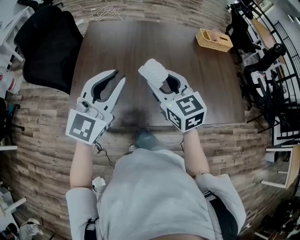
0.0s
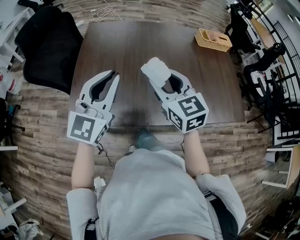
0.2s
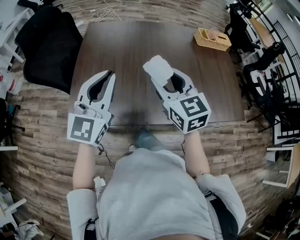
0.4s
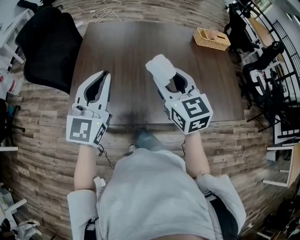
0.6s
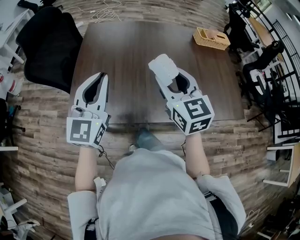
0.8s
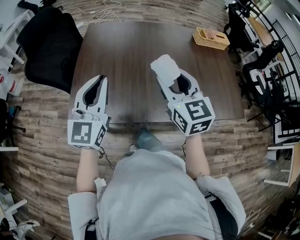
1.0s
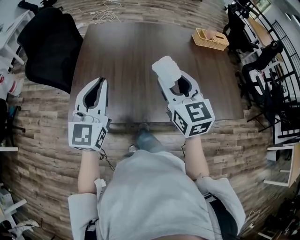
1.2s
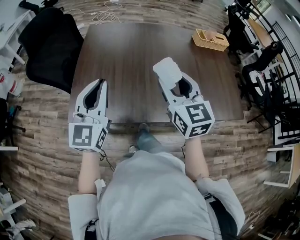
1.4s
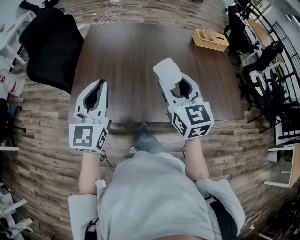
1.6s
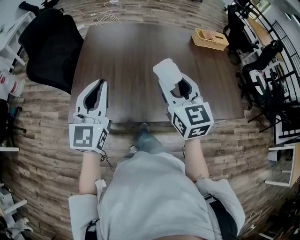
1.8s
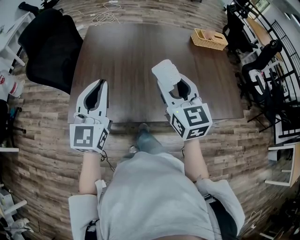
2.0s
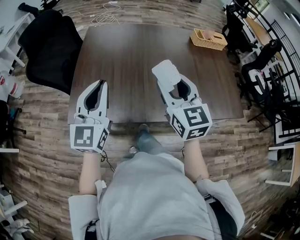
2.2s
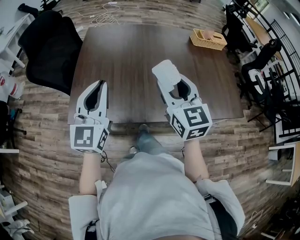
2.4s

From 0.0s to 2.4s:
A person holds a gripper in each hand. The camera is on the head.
From 0.0s to 1.2s: The left gripper moves approximately 5 cm. The right gripper changes place by some 5 cm.
From 1.2s to 2.4s: The grippers stay close to where they were, moving slightly.

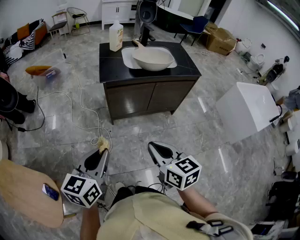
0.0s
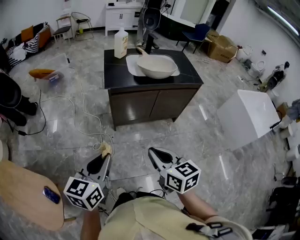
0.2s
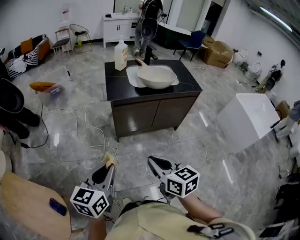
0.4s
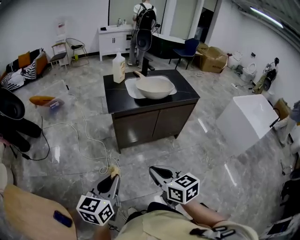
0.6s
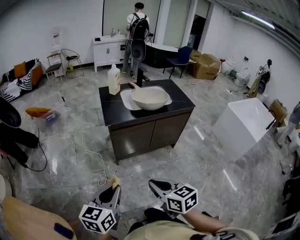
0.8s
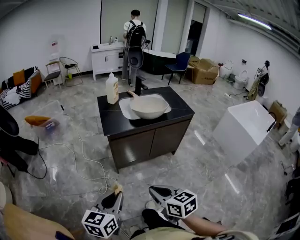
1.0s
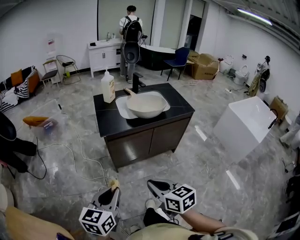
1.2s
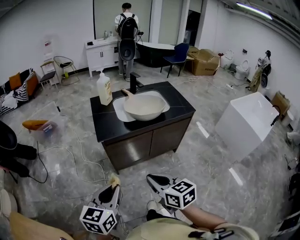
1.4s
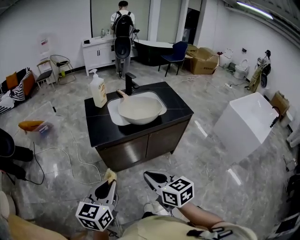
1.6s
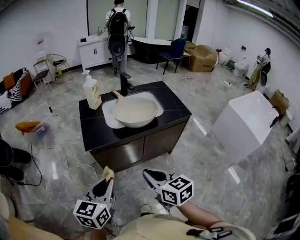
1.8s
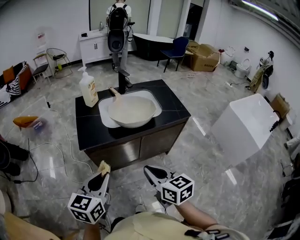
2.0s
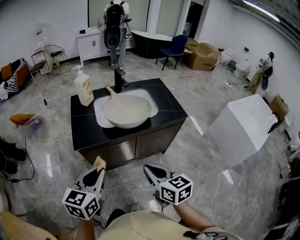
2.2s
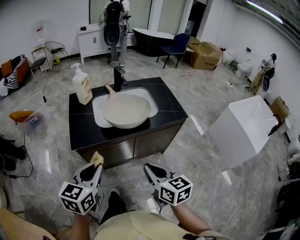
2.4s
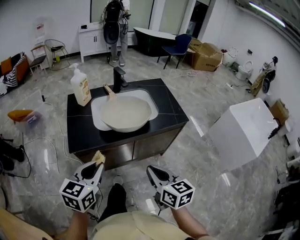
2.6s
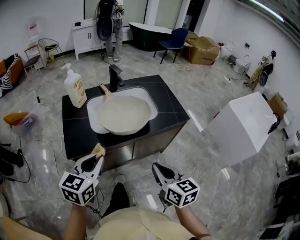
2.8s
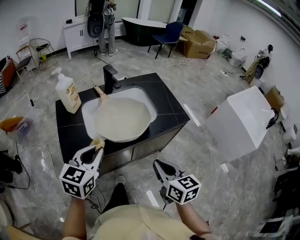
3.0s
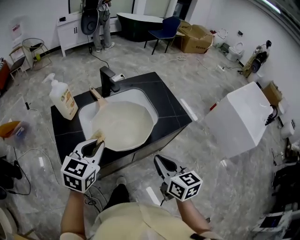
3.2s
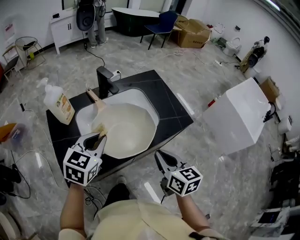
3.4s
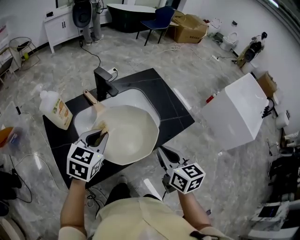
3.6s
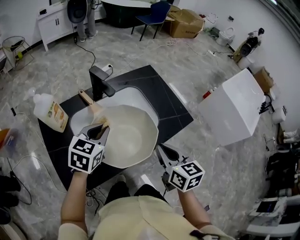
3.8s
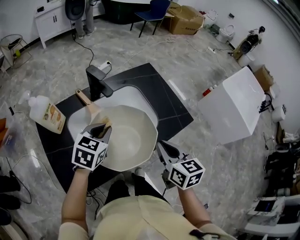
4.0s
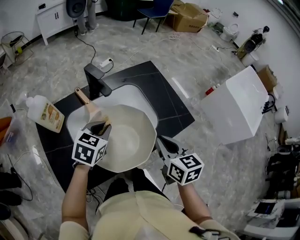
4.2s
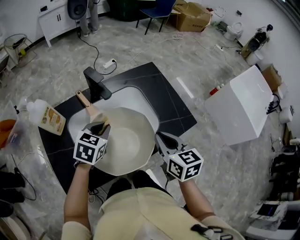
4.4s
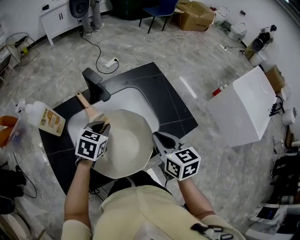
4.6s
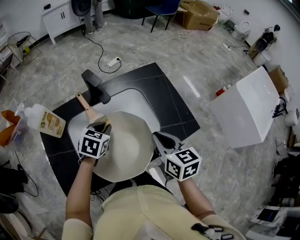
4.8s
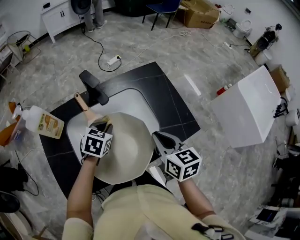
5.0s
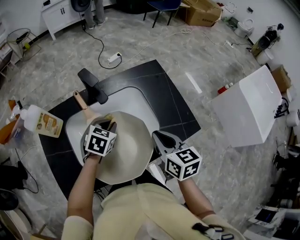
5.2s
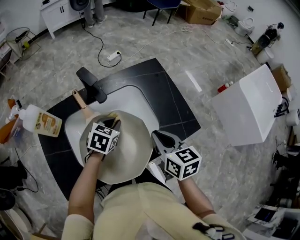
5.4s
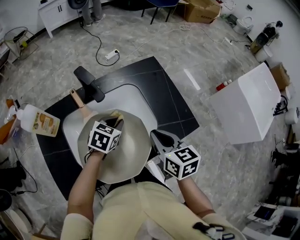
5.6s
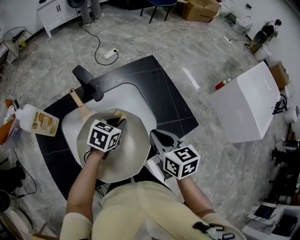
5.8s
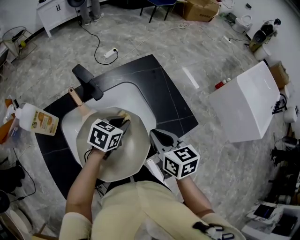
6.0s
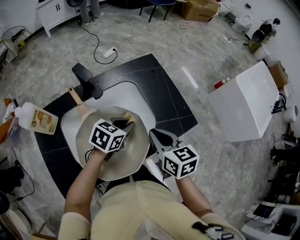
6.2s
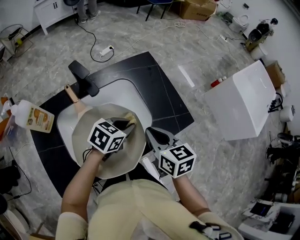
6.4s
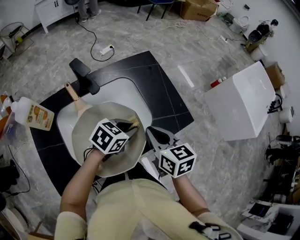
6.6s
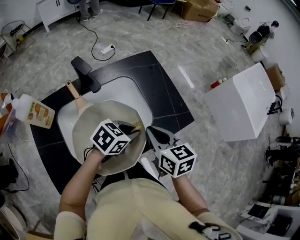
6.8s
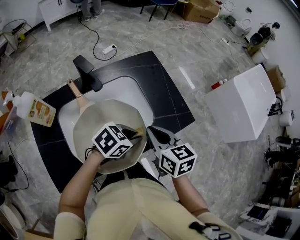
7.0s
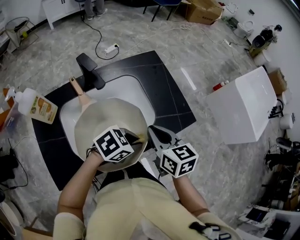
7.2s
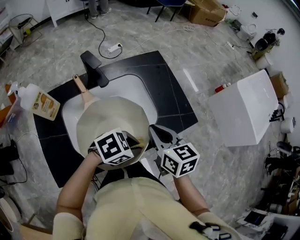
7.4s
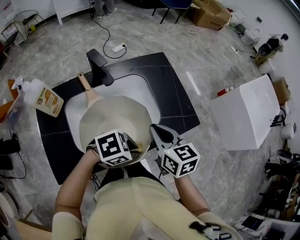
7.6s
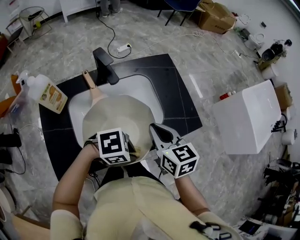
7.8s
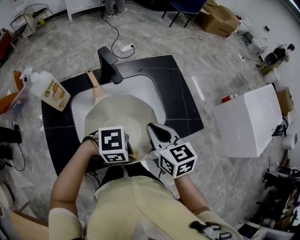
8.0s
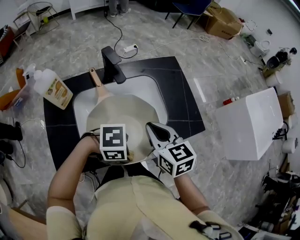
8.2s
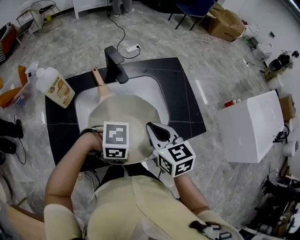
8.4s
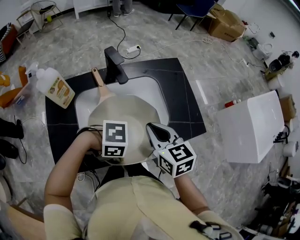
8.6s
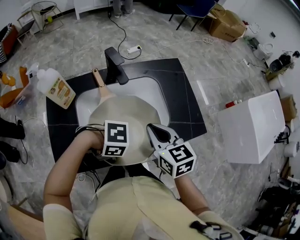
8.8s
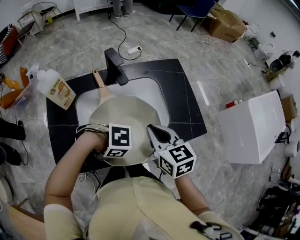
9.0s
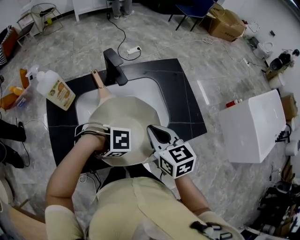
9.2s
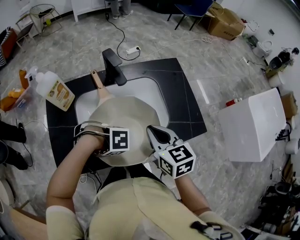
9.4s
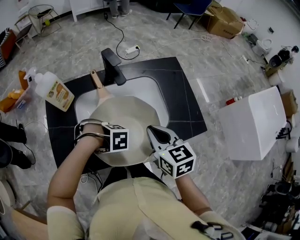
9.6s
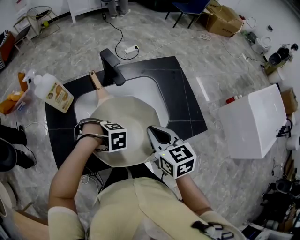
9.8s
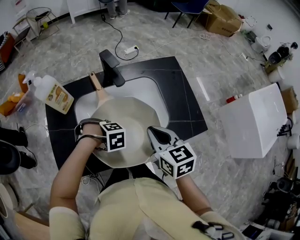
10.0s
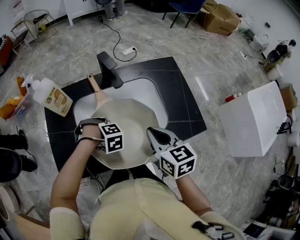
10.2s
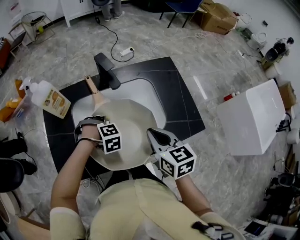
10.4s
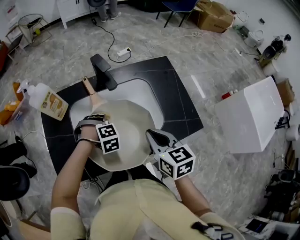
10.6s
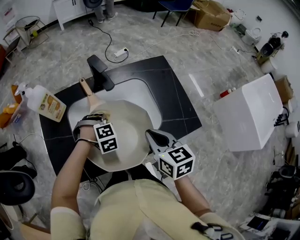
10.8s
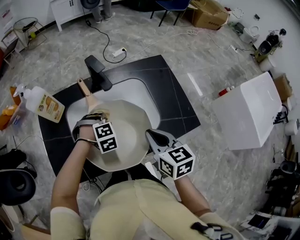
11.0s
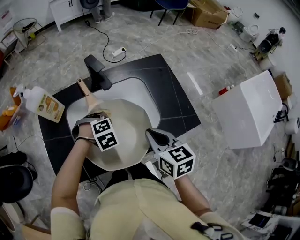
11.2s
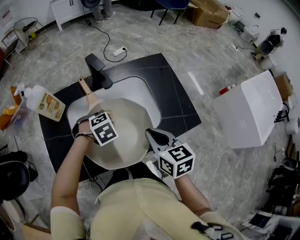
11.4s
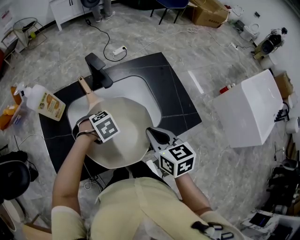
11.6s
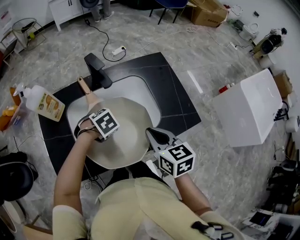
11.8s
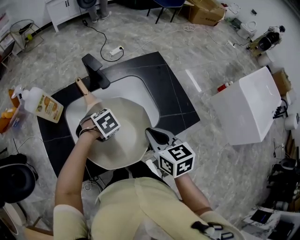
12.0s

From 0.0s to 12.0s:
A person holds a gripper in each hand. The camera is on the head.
From 0.0s to 1.6s: The grippers both shift forward by about 15 cm.
From 1.6s to 3.0s: The right gripper heads forward and to the right, covering about 30 cm, while the left gripper goes approximately 30 cm forward.
From 3.0s to 4.4s: Both grippers travel together forward, roughly 25 cm. The left gripper swivels some 20 degrees.
From 4.4s to 6.0s: The left gripper travels to the right and downward by roughly 10 cm; the right gripper changes place by some 5 cm.
From 6.0s to 7.6s: The left gripper changes place by some 20 cm, and changes its angle by roughly 40 degrees.
From 7.6s to 9.0s: The left gripper changes place by some 15 cm, and swivels some 40 degrees.
From 9.0s to 10.4s: The left gripper shifts by approximately 15 cm, and turns by about 50 degrees.
From 10.4s to 12.0s: The left gripper changes place by approximately 5 cm, and changes its angle by approximately 30 degrees.

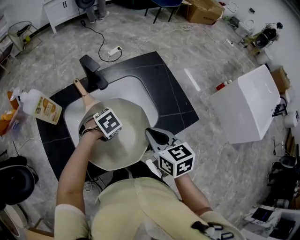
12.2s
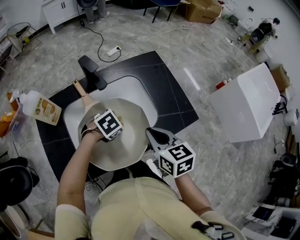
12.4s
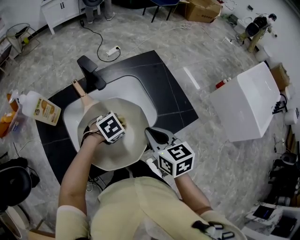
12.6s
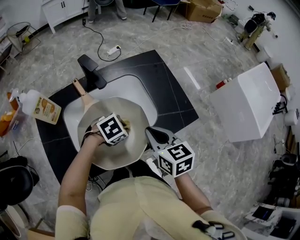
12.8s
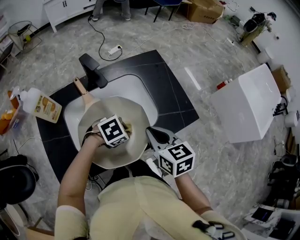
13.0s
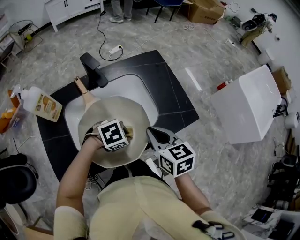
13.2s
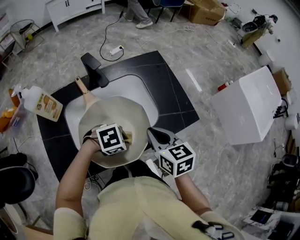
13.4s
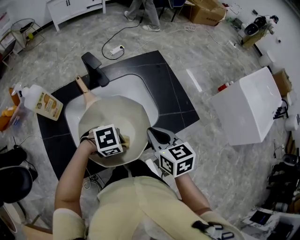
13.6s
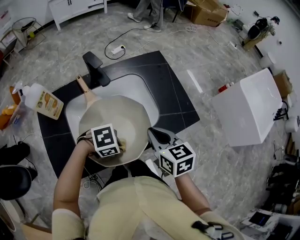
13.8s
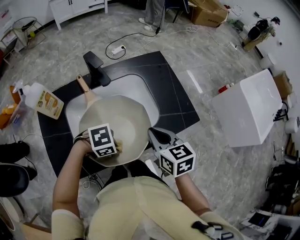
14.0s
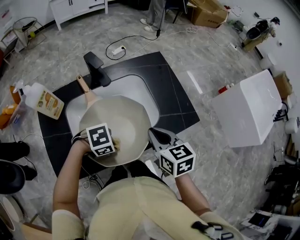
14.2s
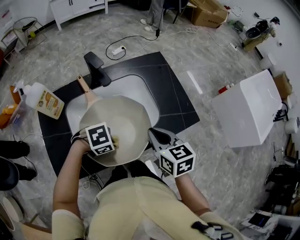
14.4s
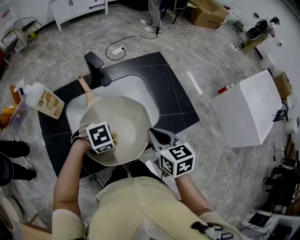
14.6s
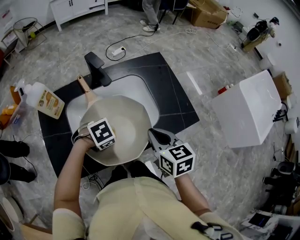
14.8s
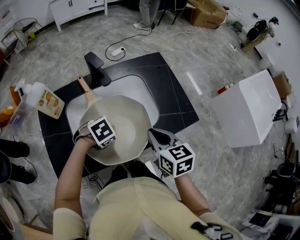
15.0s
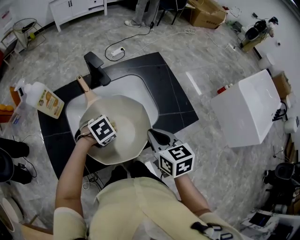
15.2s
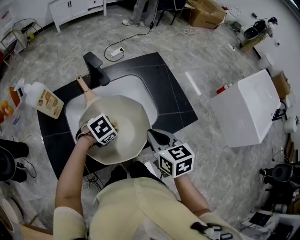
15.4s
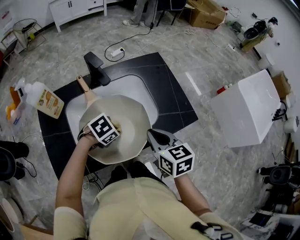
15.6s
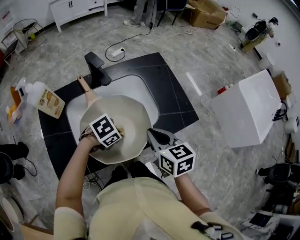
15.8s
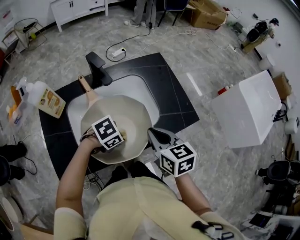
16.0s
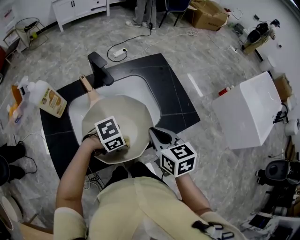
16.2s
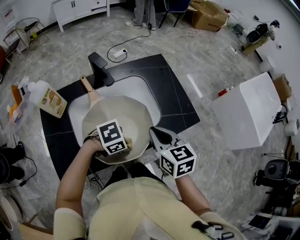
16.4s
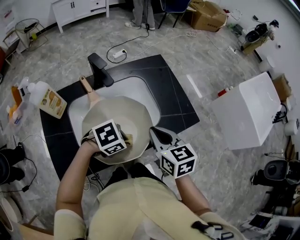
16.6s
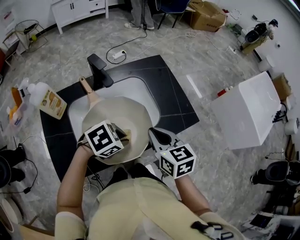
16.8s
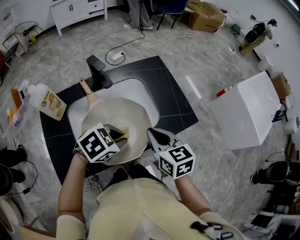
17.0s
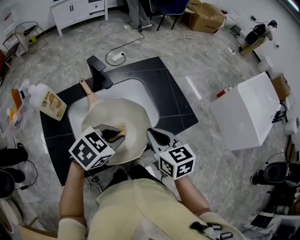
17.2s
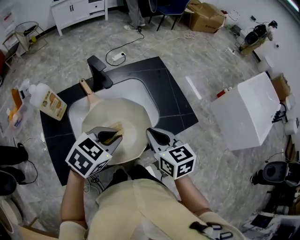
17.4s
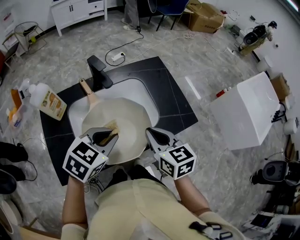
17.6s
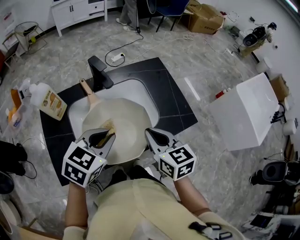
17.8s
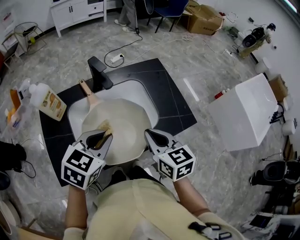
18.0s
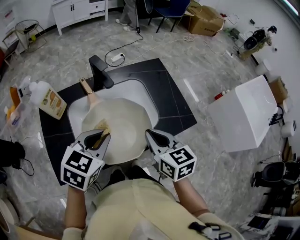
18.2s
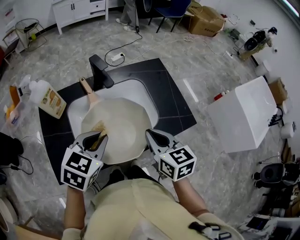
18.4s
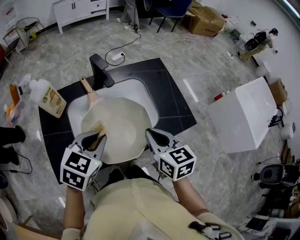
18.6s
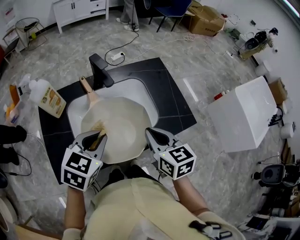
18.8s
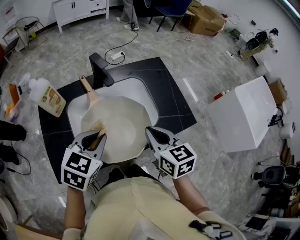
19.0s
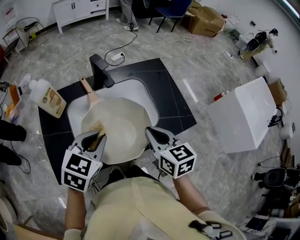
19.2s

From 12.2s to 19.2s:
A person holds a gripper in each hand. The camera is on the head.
From 12.2s to 13.6s: The left gripper shifts by approximately 15 cm, and swivels some 30 degrees.
From 13.6s to 15.0s: The left gripper changes place by about 10 cm, and turns by about 20 degrees.
From 15.0s to 16.4s: The left gripper moves roughly 10 cm, and turns by some 20 degrees.
From 16.4s to 17.8s: The left gripper moves upward, roughly 15 cm, and swivels roughly 60 degrees.
From 17.8s to 19.2s: There are only small adjustments of the grippers.

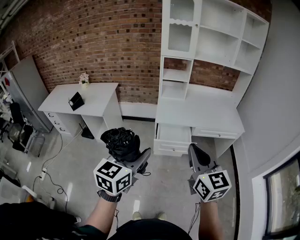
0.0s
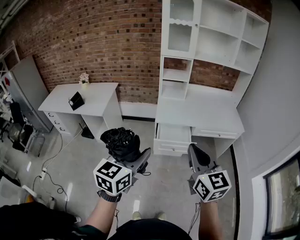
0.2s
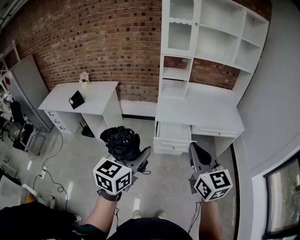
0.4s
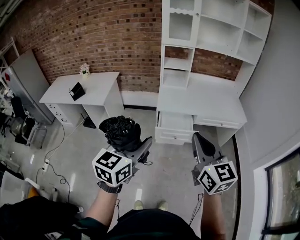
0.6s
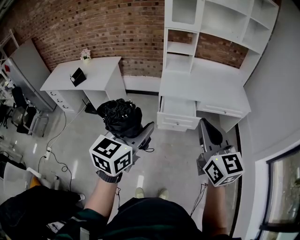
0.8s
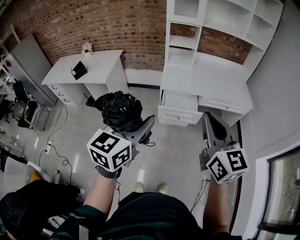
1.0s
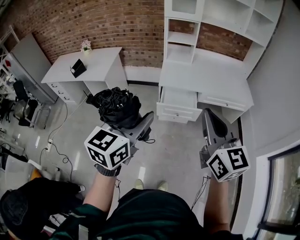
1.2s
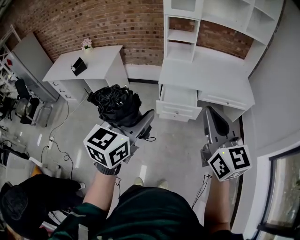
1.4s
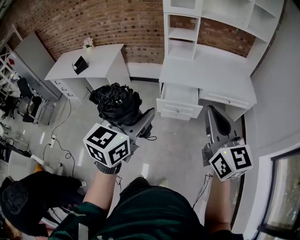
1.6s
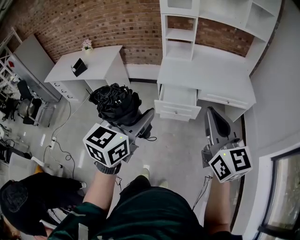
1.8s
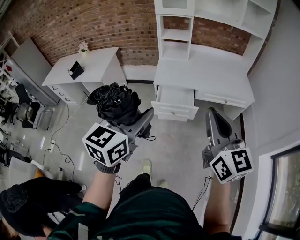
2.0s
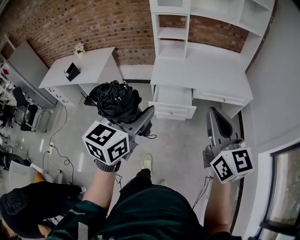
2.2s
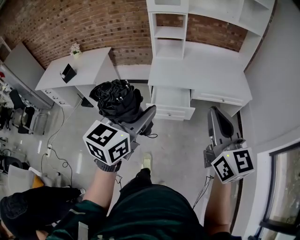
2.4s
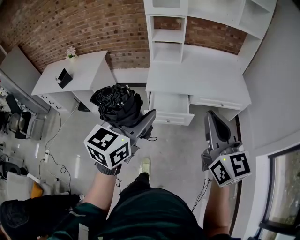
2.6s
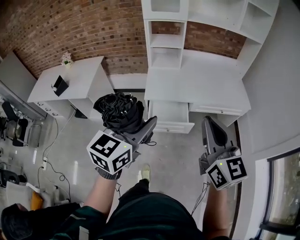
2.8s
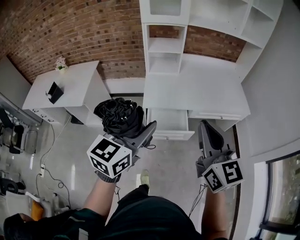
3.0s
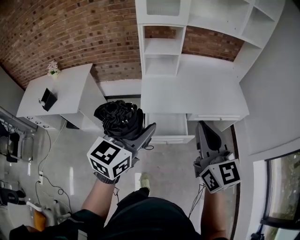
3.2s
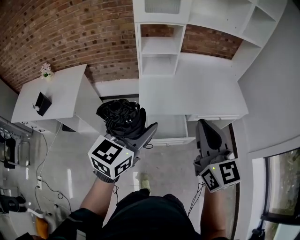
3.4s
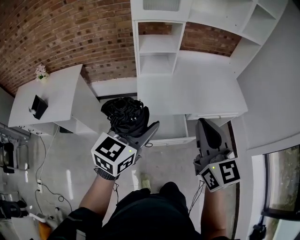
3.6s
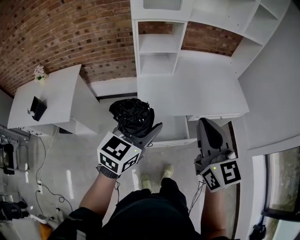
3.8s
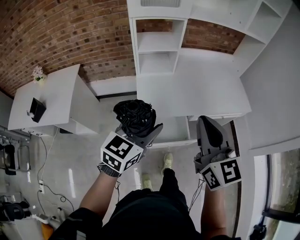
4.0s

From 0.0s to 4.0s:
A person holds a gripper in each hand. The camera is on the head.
From 0.0s to 1.4s: The grippers both shift to the right by roughly 10 cm.
From 1.4s to 2.6s: The right gripper shifts roughly 5 cm forward; the left gripper moves forward, about 10 cm.
From 2.6s to 4.0s: The right gripper travels forward and to the left by about 30 cm; the left gripper goes approximately 25 cm forward.
